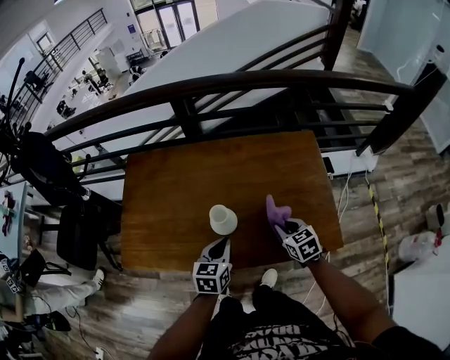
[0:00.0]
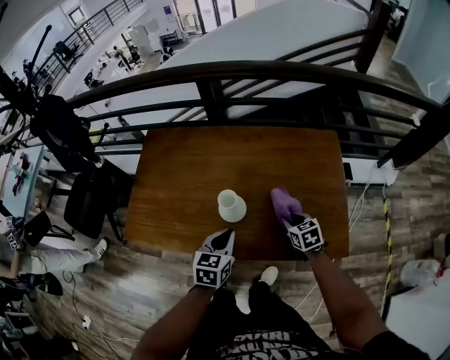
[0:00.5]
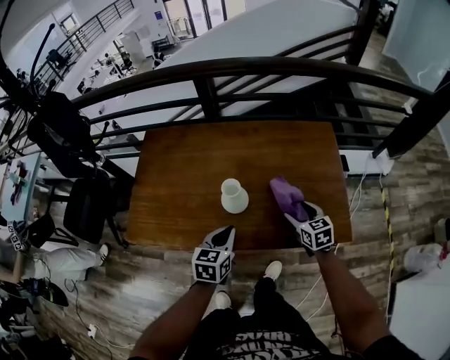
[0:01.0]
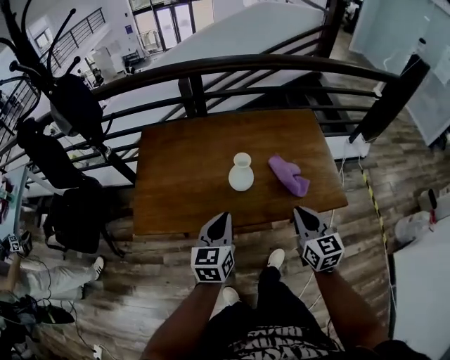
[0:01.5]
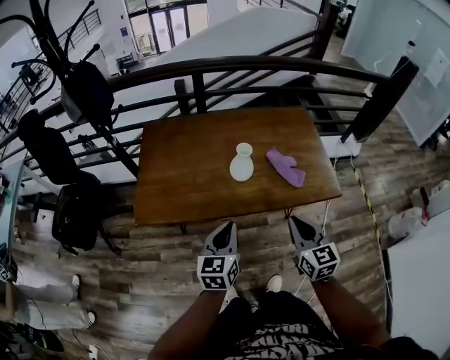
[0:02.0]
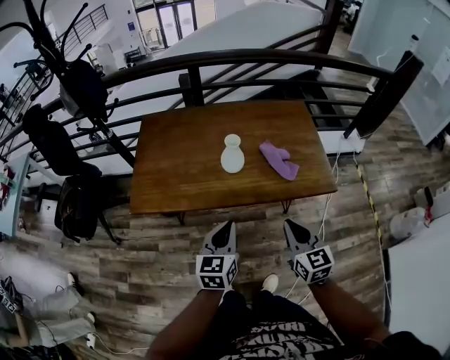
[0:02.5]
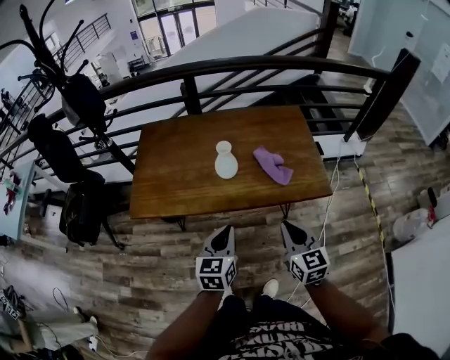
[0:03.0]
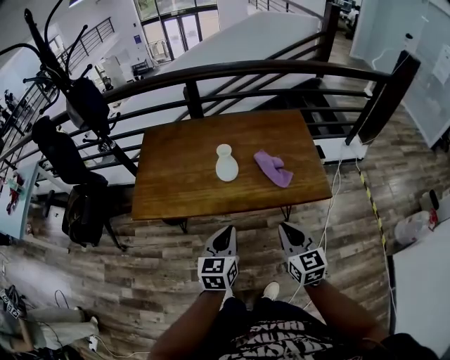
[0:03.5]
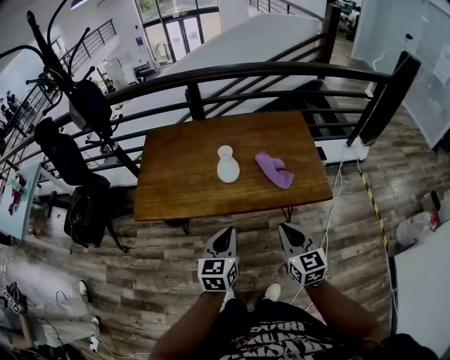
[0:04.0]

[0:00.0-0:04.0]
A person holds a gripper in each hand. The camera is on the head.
0:00.0 to 0:02.0: The right gripper goes roughly 35 cm backward, upward and to the left, changes its angle by approximately 30 degrees, and opens, then closes again. Meanwhile the left gripper shifts about 25 cm backward, to the left and upward.
0:02.0 to 0:04.0: Both grippers travel together to the right, some 10 cm.

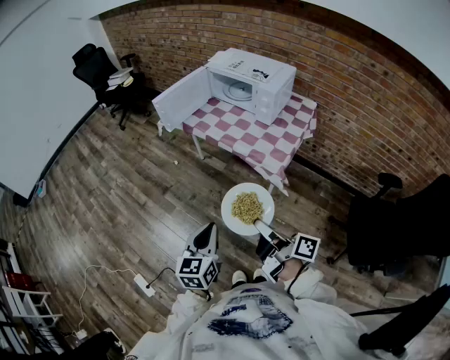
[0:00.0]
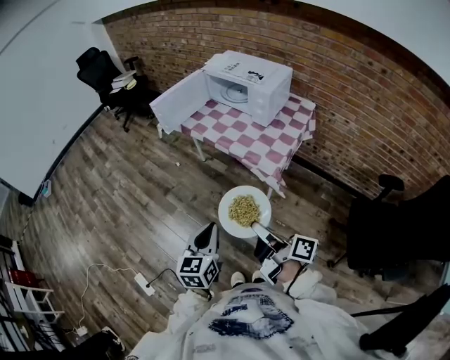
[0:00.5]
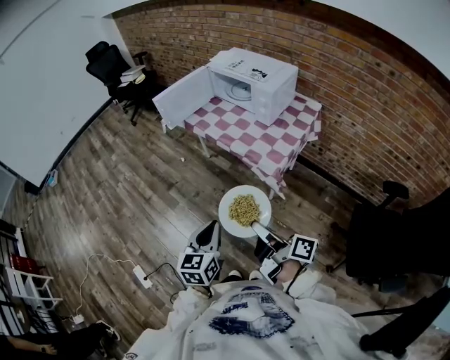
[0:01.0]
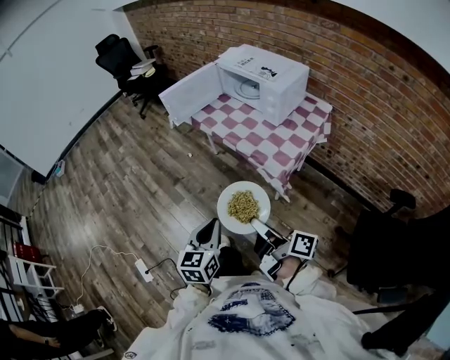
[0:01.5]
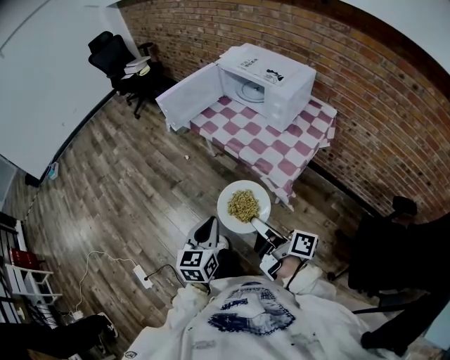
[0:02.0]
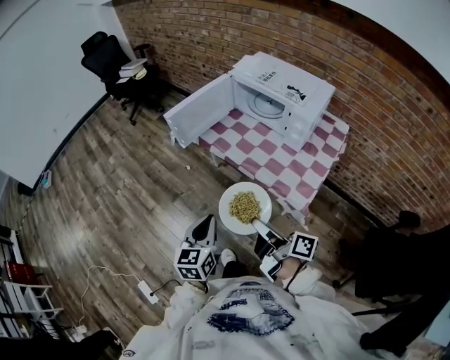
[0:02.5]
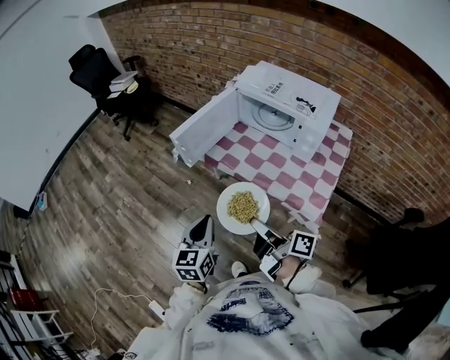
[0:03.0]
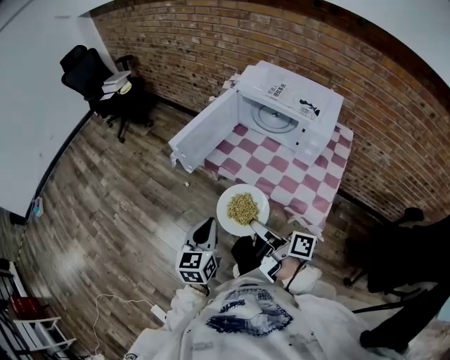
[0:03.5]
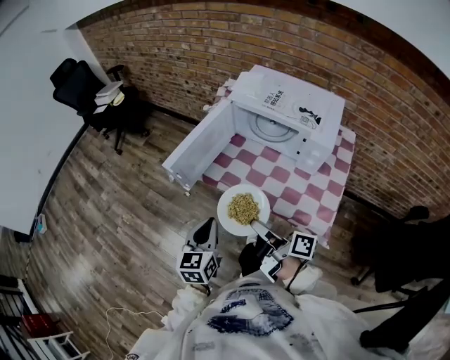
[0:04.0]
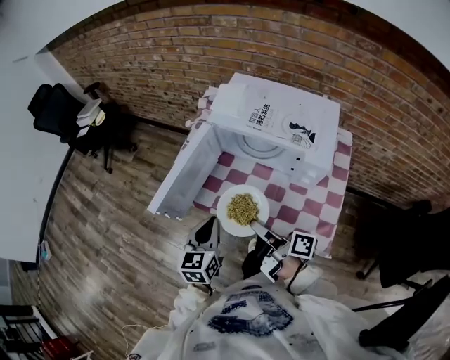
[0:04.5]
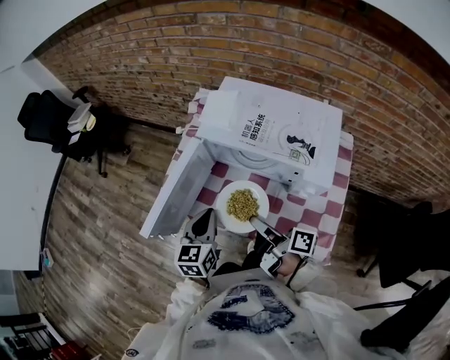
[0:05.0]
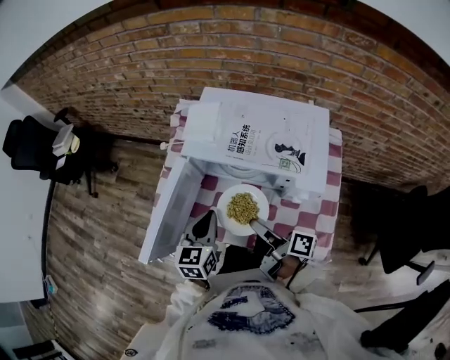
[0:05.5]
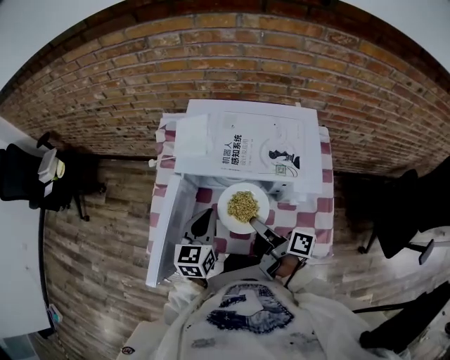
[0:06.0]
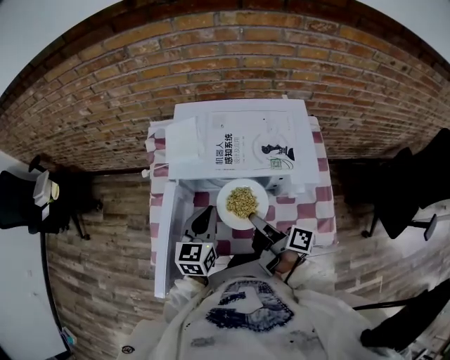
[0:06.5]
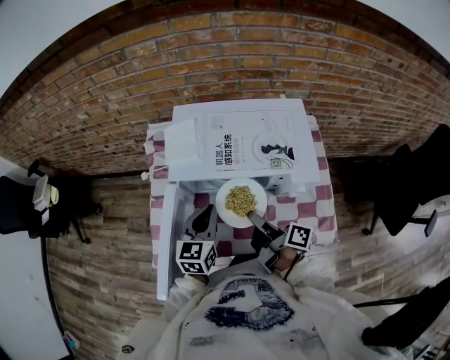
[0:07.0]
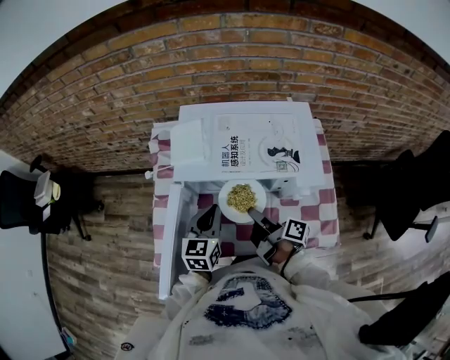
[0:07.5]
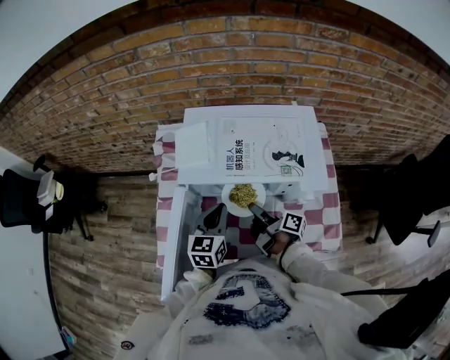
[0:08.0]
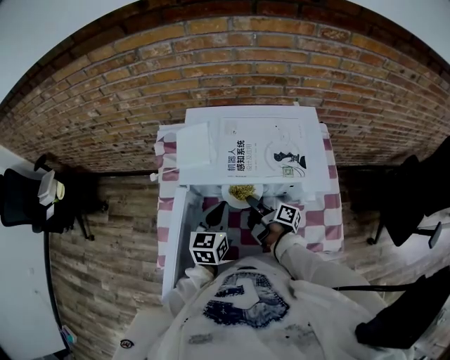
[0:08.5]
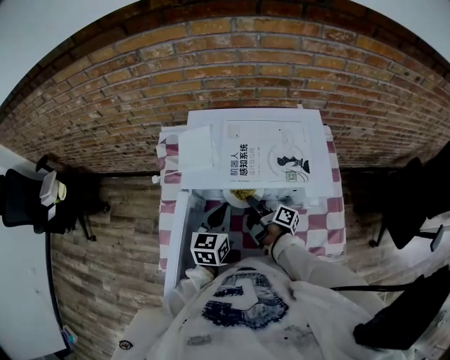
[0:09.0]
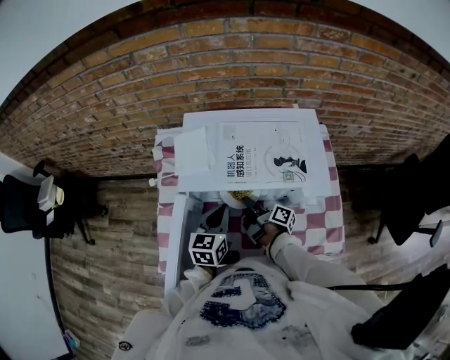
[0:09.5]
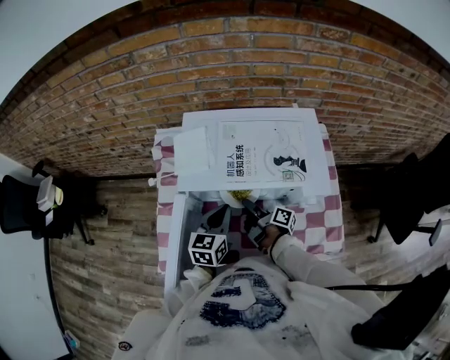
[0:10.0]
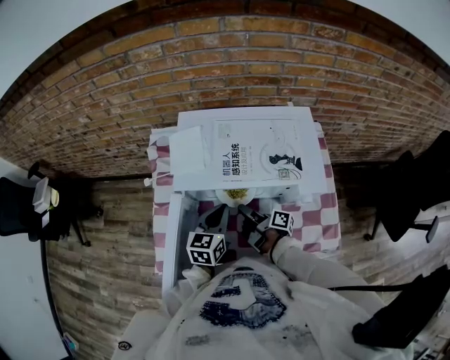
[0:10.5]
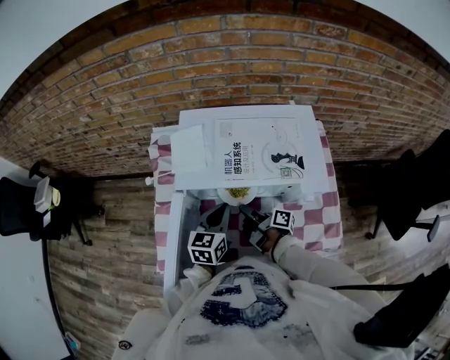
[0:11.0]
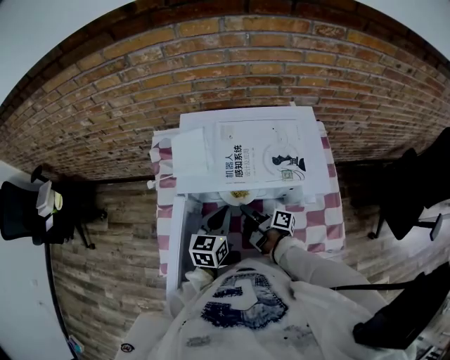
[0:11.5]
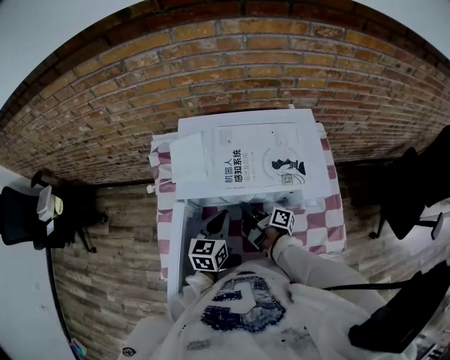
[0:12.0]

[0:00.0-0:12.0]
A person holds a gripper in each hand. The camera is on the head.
0:00.0 to 0:02.0: The left gripper moves roughly 10 cm.
0:02.0 to 0:04.0: The left gripper changes place by about 35 cm.
0:04.0 to 0:06.0: The left gripper changes place by some 35 cm, and swivels roughly 30 degrees.
0:06.0 to 0:08.0: The left gripper moves some 5 cm.

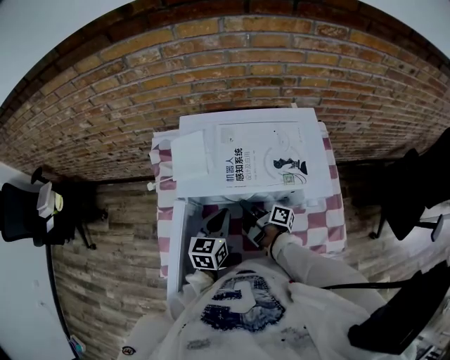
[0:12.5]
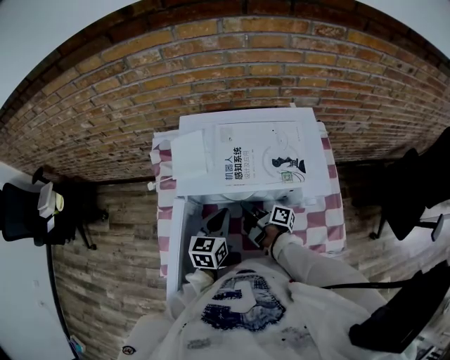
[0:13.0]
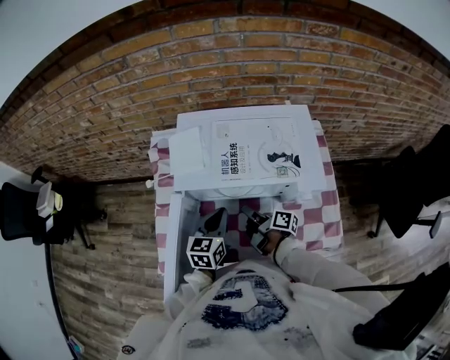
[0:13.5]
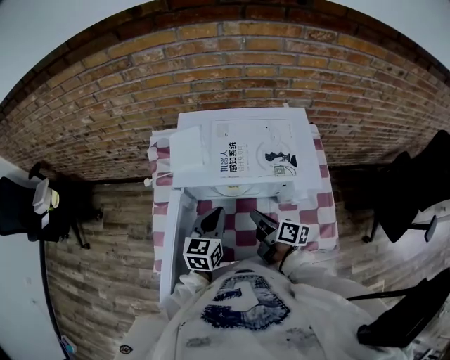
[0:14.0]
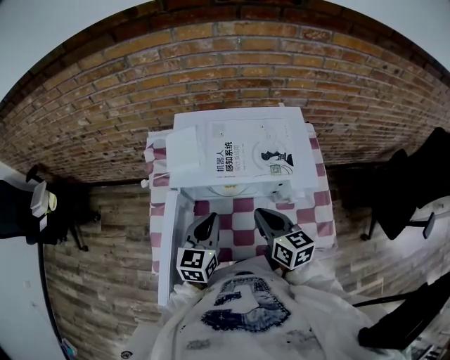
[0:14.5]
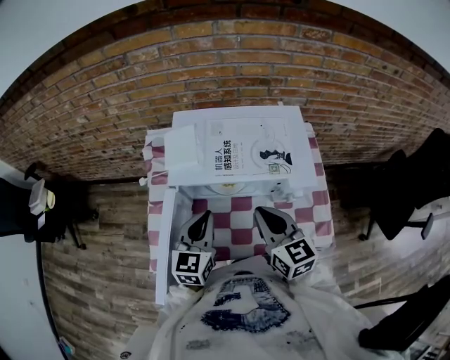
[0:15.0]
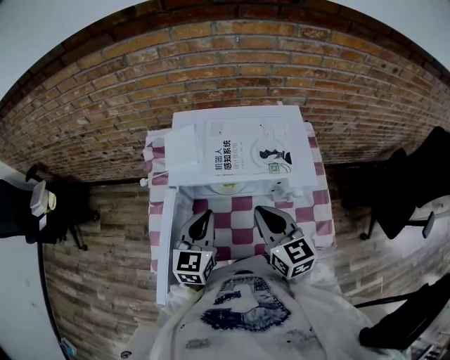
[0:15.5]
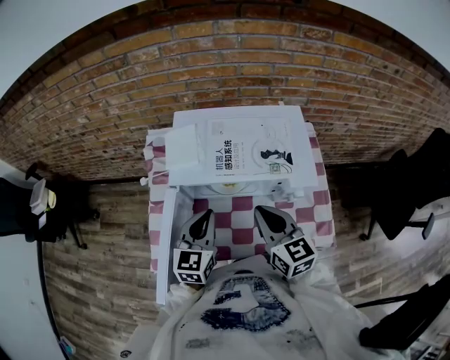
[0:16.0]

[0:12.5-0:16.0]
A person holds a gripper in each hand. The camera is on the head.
0:12.5 to 0:14.5: The left gripper is displaced upward by some 5 cm.

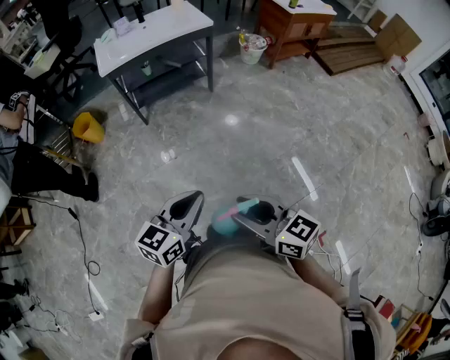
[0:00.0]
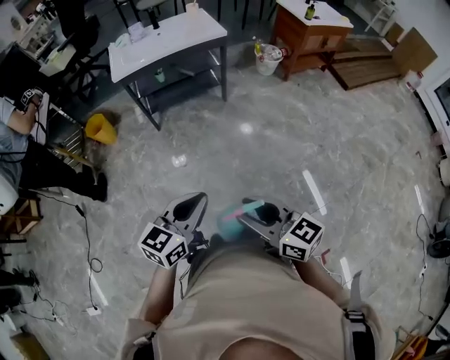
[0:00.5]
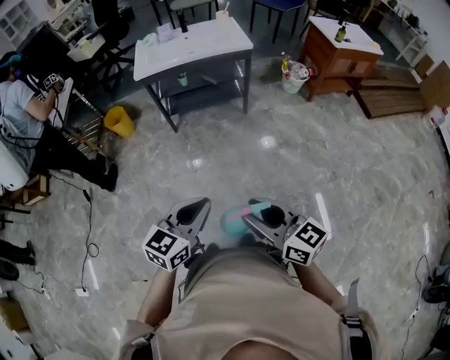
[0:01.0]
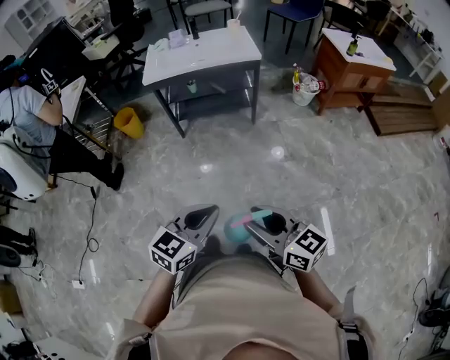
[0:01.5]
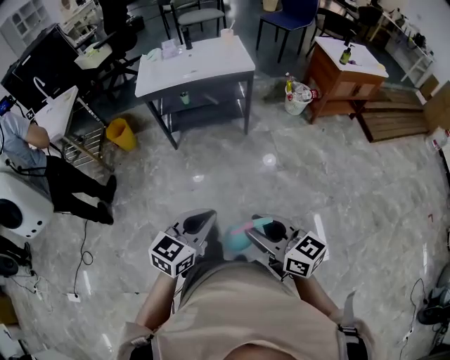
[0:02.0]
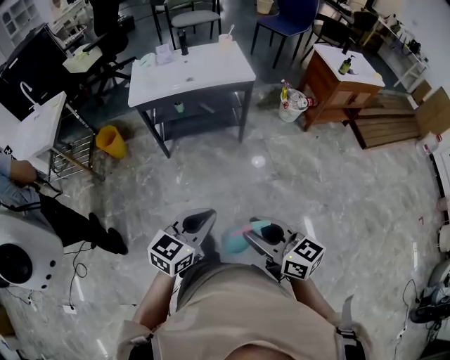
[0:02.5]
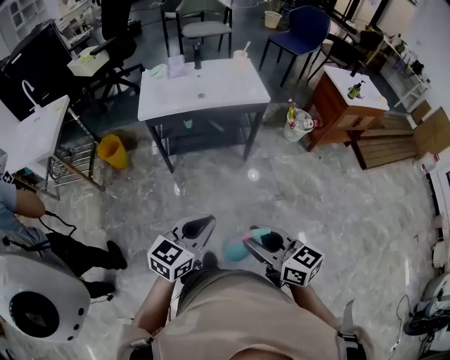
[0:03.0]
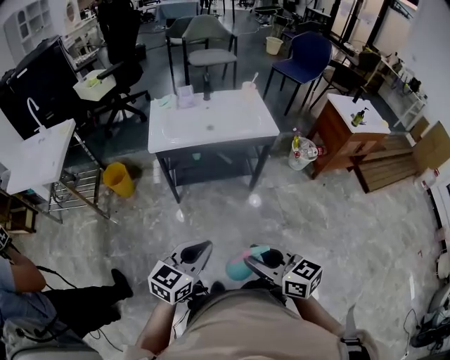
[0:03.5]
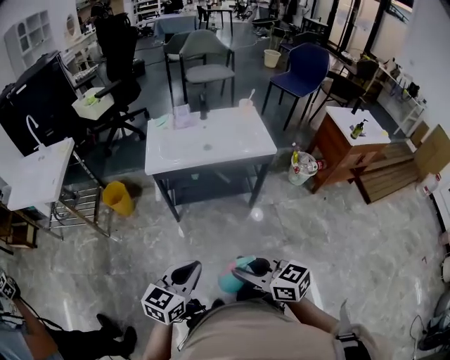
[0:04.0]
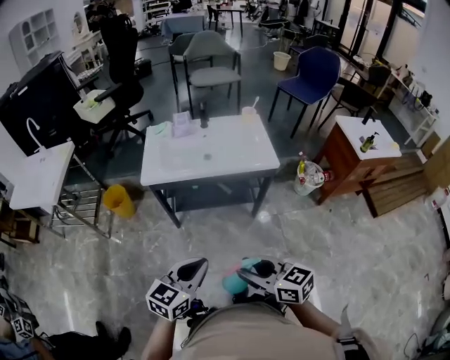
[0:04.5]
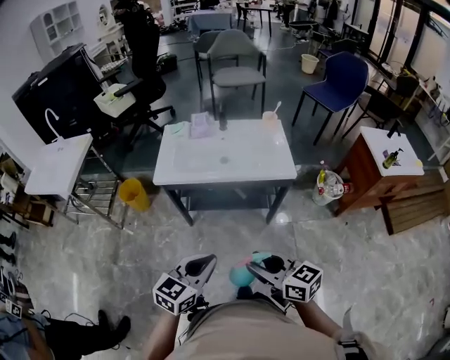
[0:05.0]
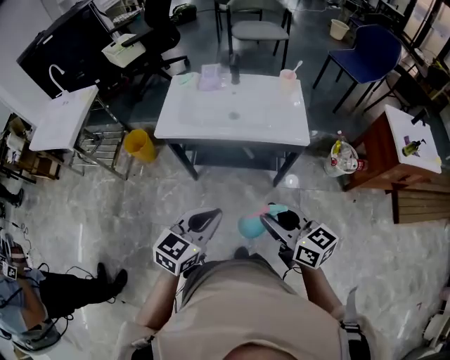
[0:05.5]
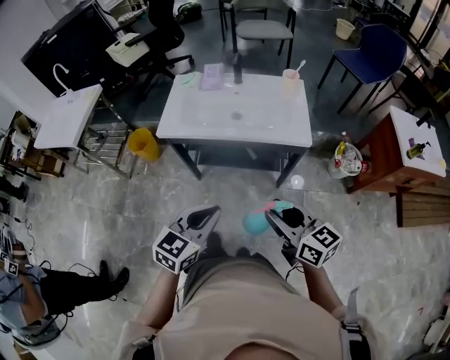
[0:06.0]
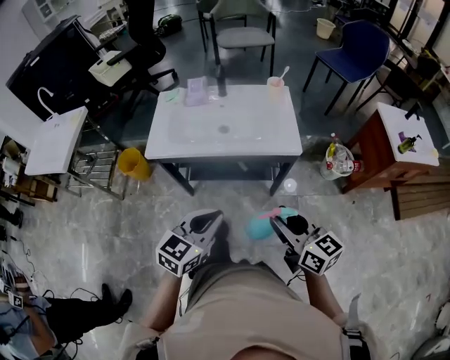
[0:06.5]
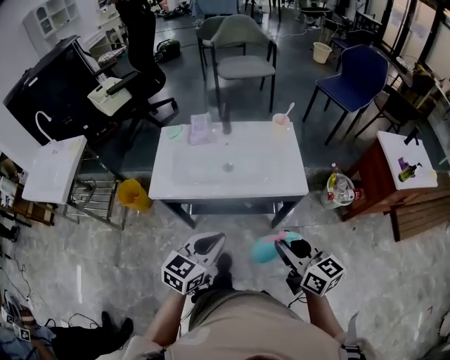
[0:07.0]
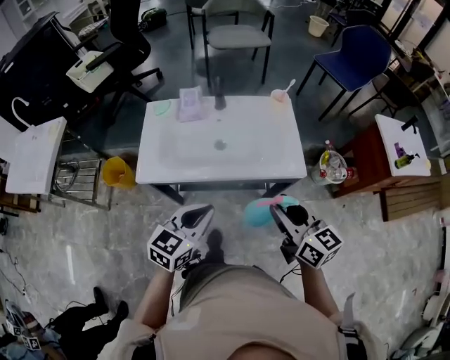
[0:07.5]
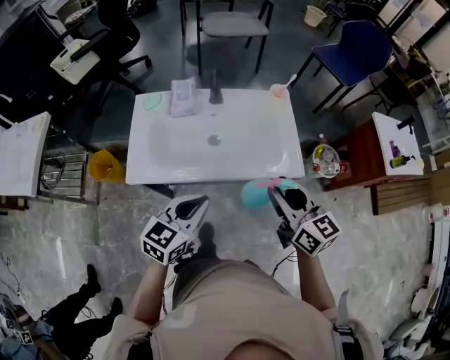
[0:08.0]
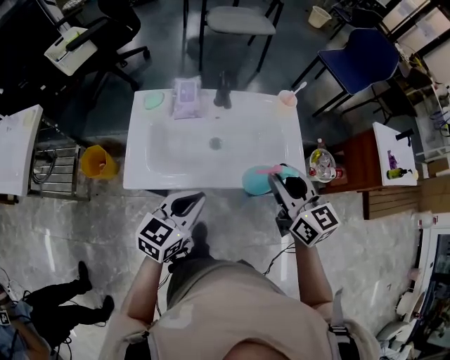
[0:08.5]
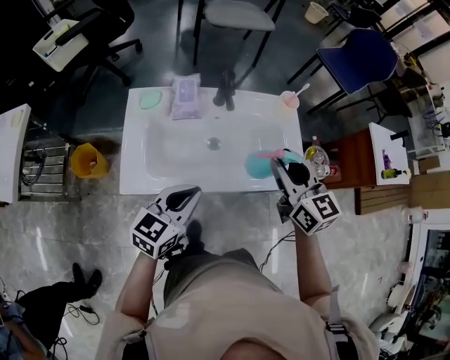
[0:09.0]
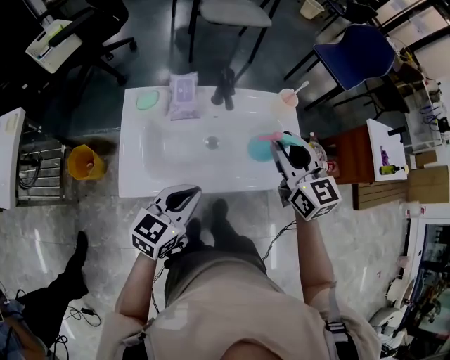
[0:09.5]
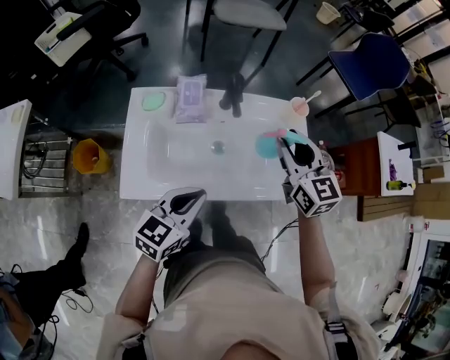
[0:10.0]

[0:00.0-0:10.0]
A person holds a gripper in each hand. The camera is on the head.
0:00.0 to 0:02.0: The grippers both shift to the right and forward by about 15 cm.
0:02.0 to 0:04.0: Both grippers travel together forward and to the left, roughly 30 cm.
0:04.0 to 0:06.0: Both grippers move forward and to the right, roughly 25 cm.
0:06.0 to 0:08.0: The two grippers go about 20 cm forward. The right gripper changes its angle by some 20 degrees.
0:08.0 to 0:10.0: The left gripper shifts roughly 10 cm forward and to the left. The right gripper moves forward, some 20 cm, and changes its angle by some 20 degrees.
